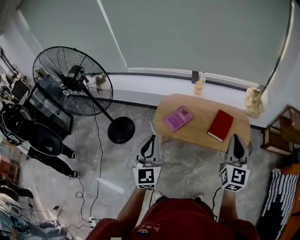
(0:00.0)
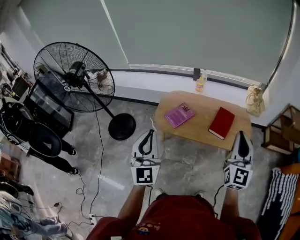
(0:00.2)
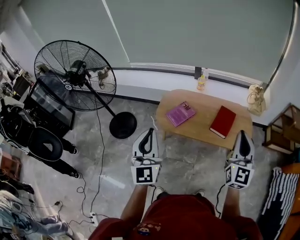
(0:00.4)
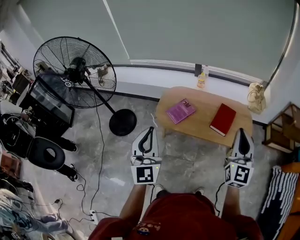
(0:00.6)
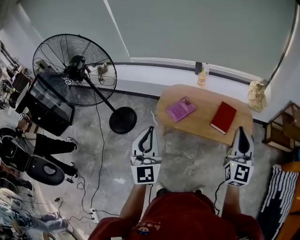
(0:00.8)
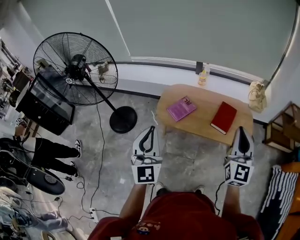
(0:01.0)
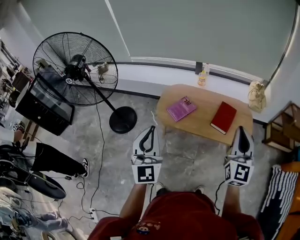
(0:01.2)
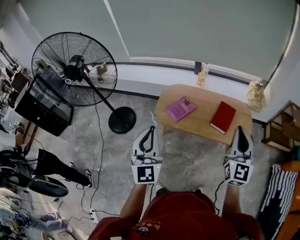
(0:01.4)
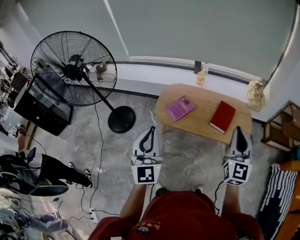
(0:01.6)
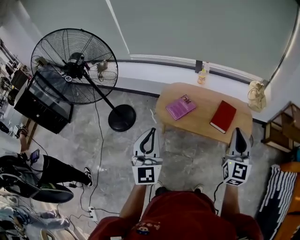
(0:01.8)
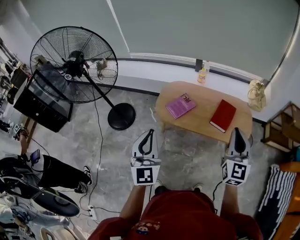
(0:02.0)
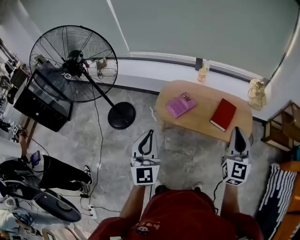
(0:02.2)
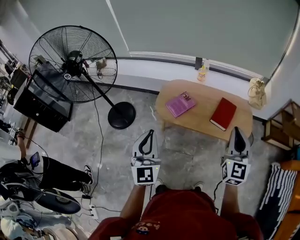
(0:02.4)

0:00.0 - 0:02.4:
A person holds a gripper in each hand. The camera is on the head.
0:00.0 - 0:02.4: The grippers move only a little.

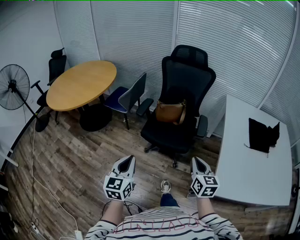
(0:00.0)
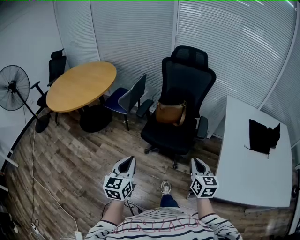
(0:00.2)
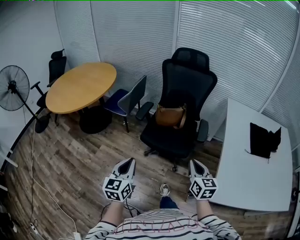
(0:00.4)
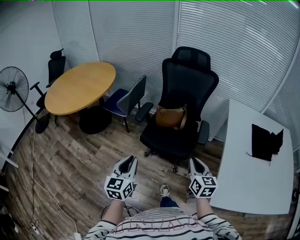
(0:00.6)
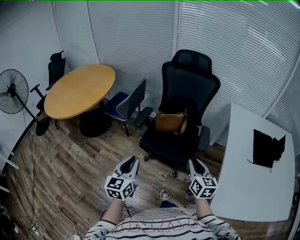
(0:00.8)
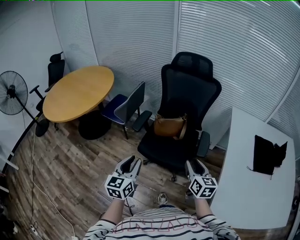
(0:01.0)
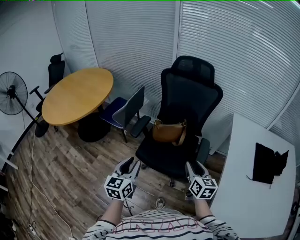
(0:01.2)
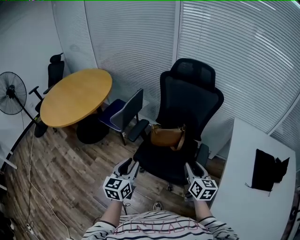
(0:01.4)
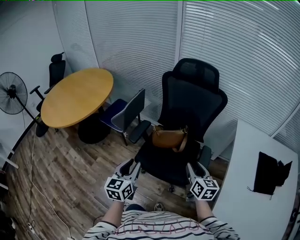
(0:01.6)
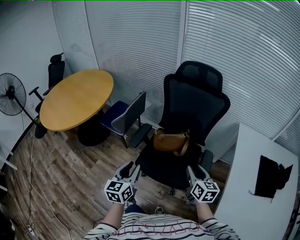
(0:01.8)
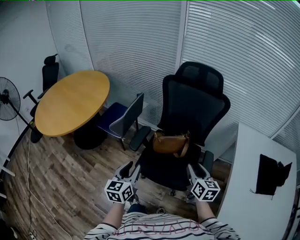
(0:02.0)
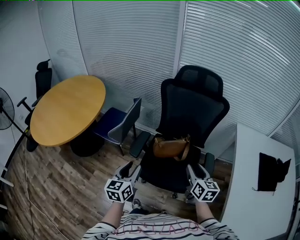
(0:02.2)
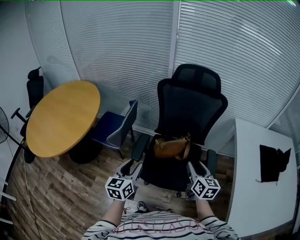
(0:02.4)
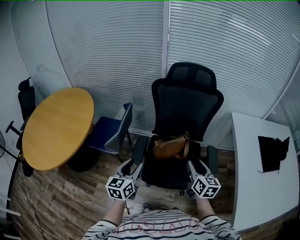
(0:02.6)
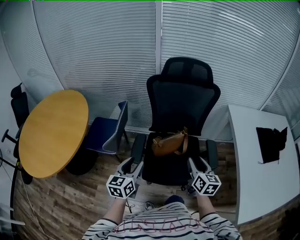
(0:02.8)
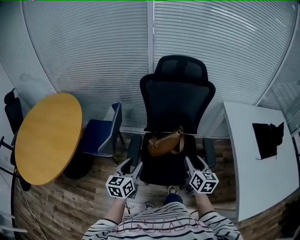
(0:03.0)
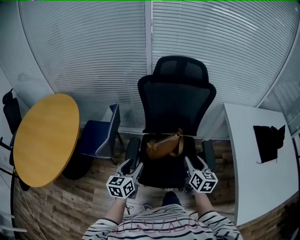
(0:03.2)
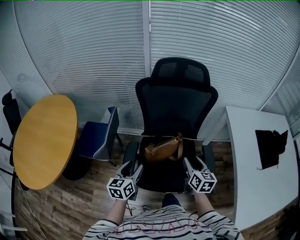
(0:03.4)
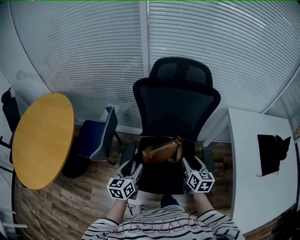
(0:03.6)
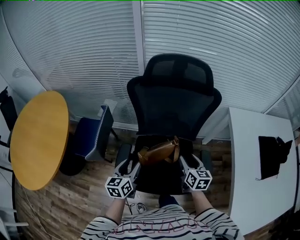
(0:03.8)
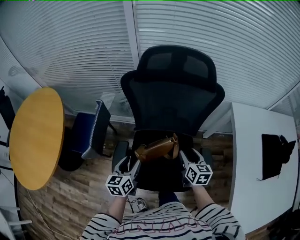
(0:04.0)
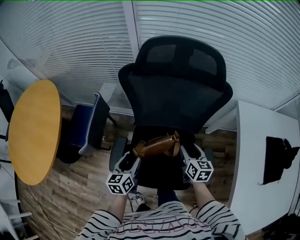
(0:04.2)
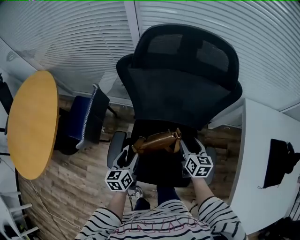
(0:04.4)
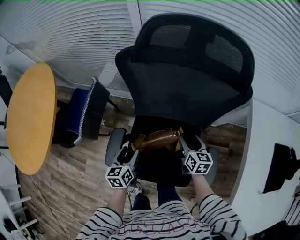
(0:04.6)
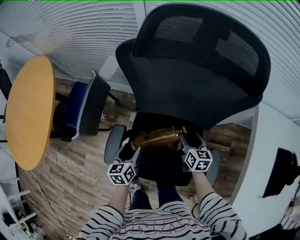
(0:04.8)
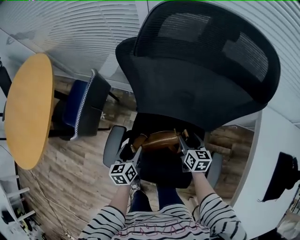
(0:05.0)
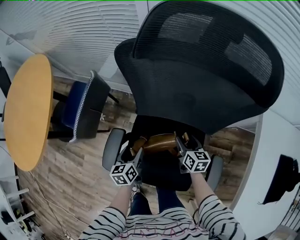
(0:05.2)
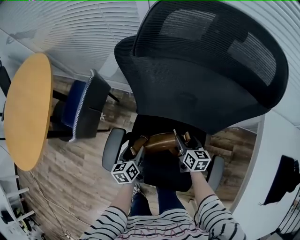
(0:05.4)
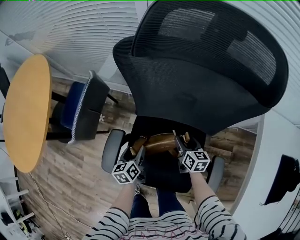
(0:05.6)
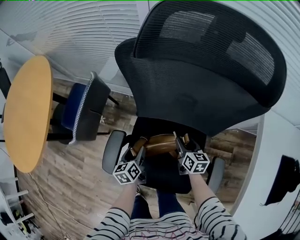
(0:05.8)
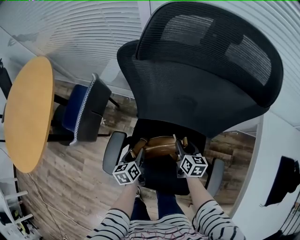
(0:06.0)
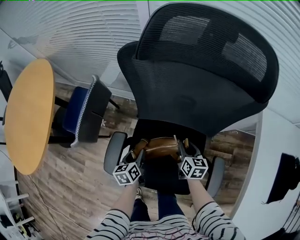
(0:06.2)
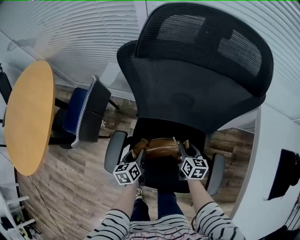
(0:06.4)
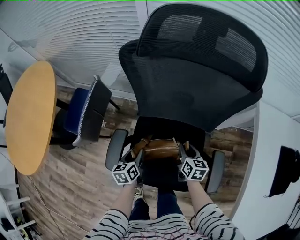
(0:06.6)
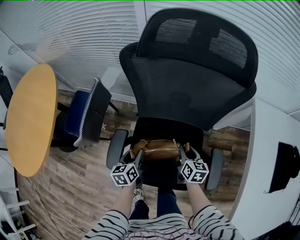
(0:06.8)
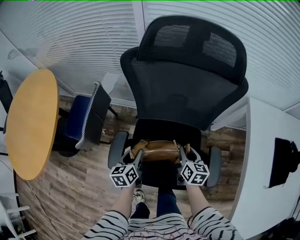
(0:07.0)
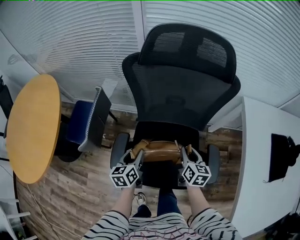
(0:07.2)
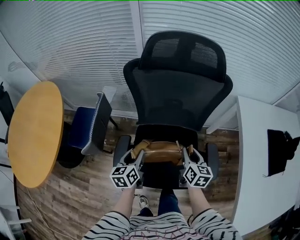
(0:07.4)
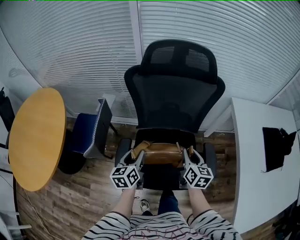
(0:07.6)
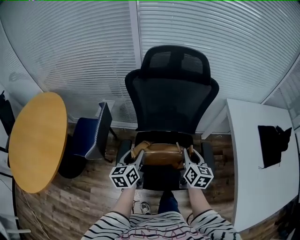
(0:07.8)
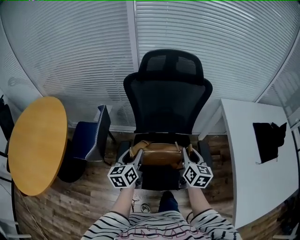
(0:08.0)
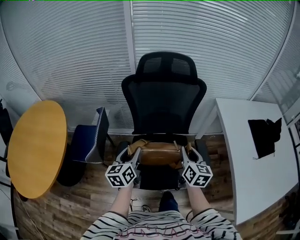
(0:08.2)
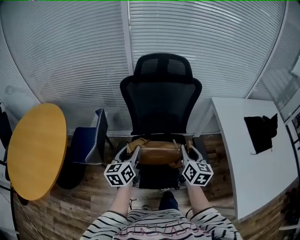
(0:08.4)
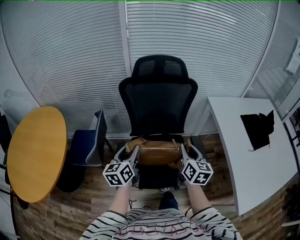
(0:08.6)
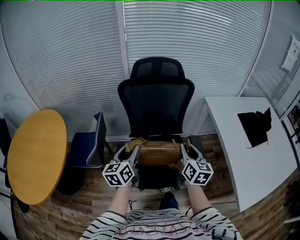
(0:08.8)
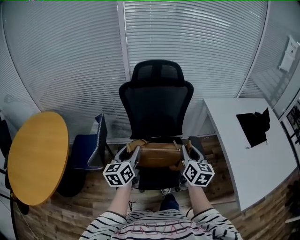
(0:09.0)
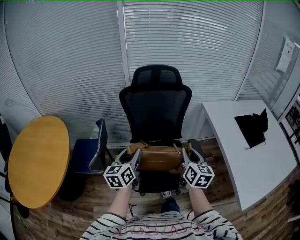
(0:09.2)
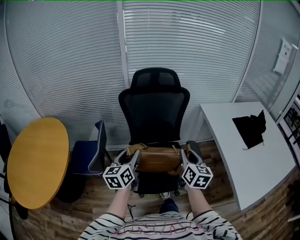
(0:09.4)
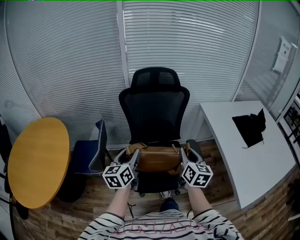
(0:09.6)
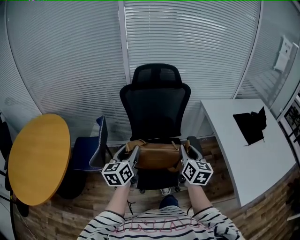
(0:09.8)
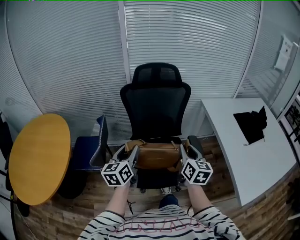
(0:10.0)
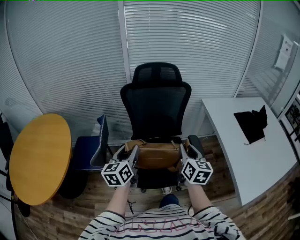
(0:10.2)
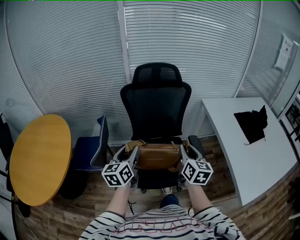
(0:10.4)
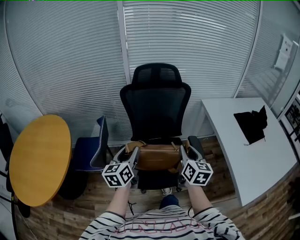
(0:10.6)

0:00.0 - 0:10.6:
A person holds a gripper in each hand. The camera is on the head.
0:00.0 - 0:01.6: The two grippers go roughly 30 cm forward. The right gripper opens.
0:01.6 - 0:03.0: The right gripper shifts by approximately 15 cm, and turns by roughly 20 degrees. The left gripper moves approximately 25 cm, and rotates some 30 degrees.
0:03.0 - 0:04.6: Both grippers travel together forward and downward, roughly 35 cm. The left gripper turns by about 30 degrees.
0:04.6 - 0:06.0: Both grippers travel together downward, roughly 10 cm.
0:06.0 - 0:07.6: The left gripper moves upward, about 20 cm, and rotates about 30 degrees; the right gripper shifts some 25 cm upward and backward, and rotates roughly 20 degrees.
0:07.6 - 0:09.0: The grippers both shift upward and backward by about 20 cm.
0:09.0 - 0:10.6: The grippers make only small movements.

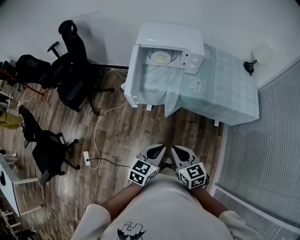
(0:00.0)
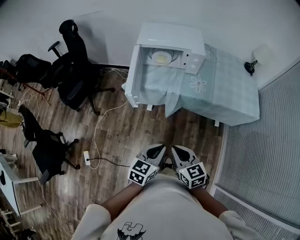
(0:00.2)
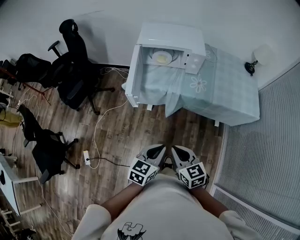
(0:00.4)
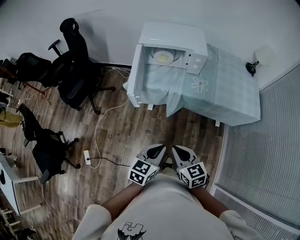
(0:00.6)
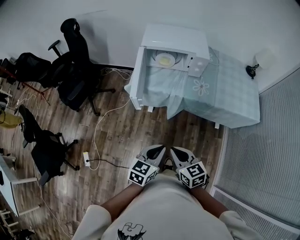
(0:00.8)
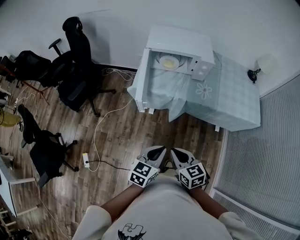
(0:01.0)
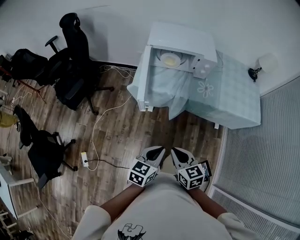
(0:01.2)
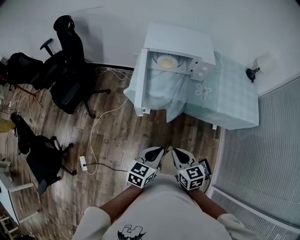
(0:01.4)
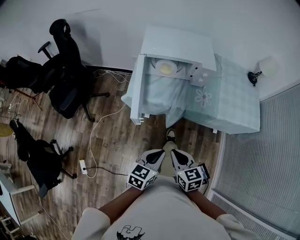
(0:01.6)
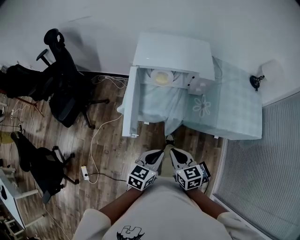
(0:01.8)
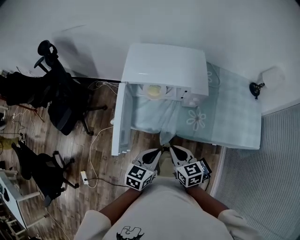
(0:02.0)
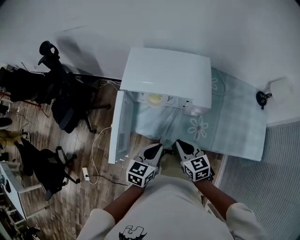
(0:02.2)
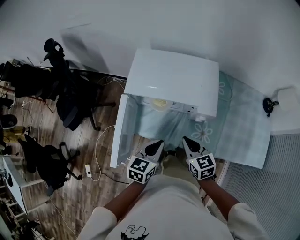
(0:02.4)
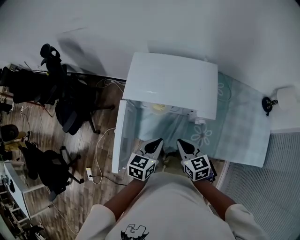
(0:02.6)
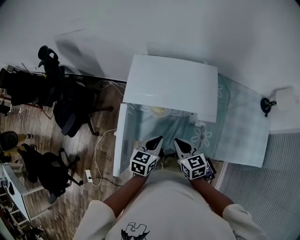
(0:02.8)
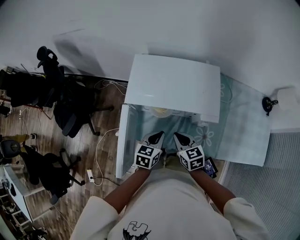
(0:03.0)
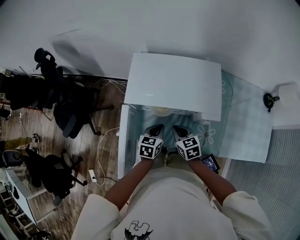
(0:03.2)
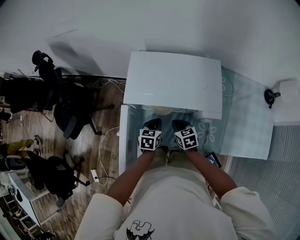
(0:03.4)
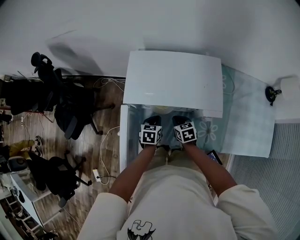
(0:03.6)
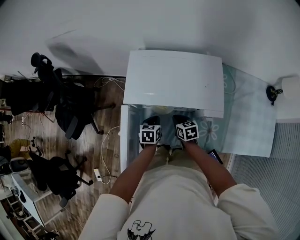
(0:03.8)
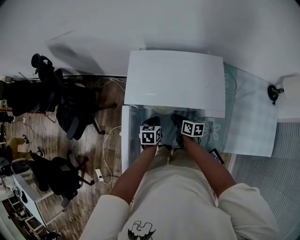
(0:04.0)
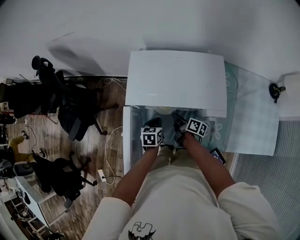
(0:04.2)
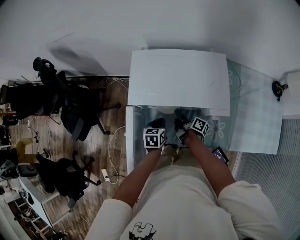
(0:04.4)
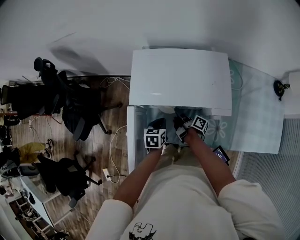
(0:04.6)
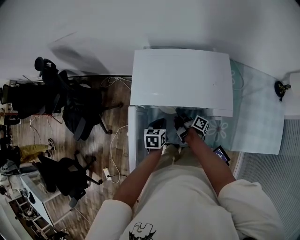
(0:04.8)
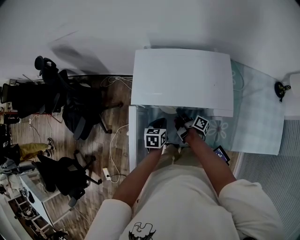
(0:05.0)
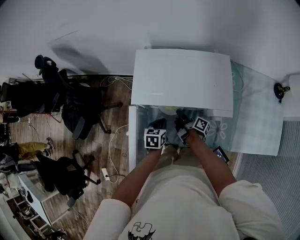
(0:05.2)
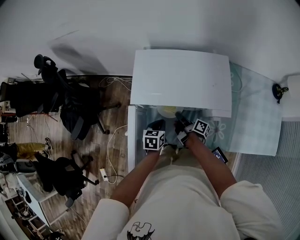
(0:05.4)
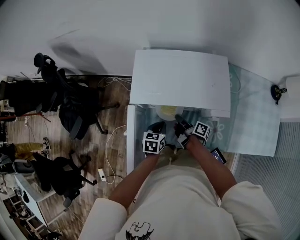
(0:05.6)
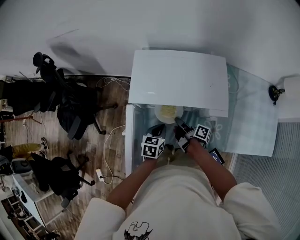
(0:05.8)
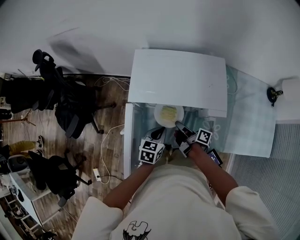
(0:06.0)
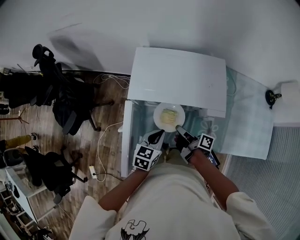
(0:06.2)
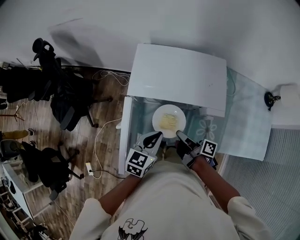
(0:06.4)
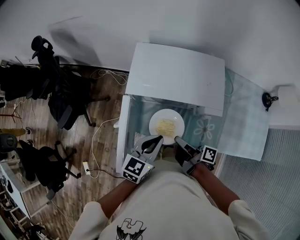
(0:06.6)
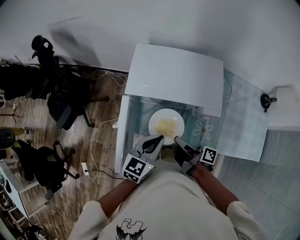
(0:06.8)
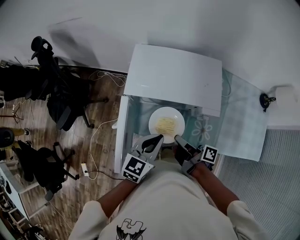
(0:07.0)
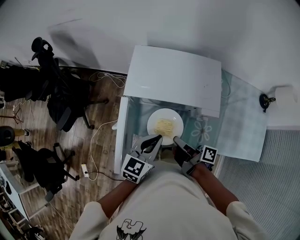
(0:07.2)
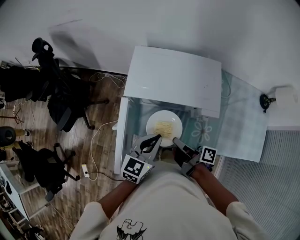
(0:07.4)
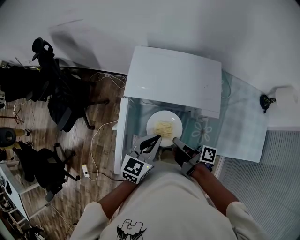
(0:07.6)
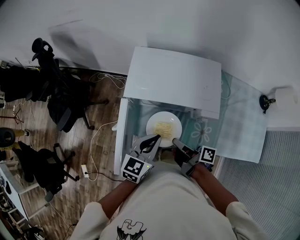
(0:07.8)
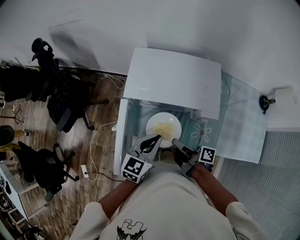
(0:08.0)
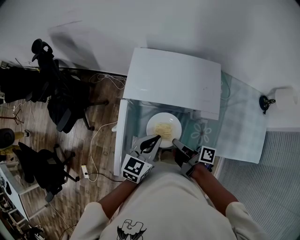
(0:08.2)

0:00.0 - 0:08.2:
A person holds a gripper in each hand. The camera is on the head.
0:00.0 - 0:01.6: The grippers both shift forward and to the left by roughly 10 cm.
0:01.6 - 0:03.2: Both grippers move forward, roughly 40 cm.
0:03.2 - 0:05.0: The left gripper heads downward, covering approximately 5 cm. The right gripper goes some 15 cm downward and forward, and twists roughly 80 degrees clockwise, seen from behind.
0:05.0 - 0:06.6: The grippers both shift upward and backward by roughly 20 cm. The left gripper turns by roughly 30 degrees.
0:06.6 - 0:08.2: There are only small adjustments of the grippers.

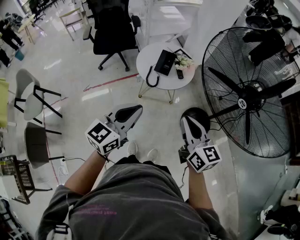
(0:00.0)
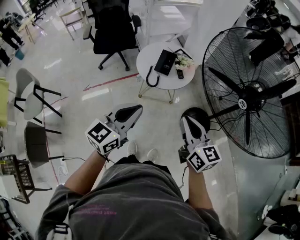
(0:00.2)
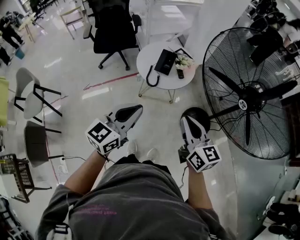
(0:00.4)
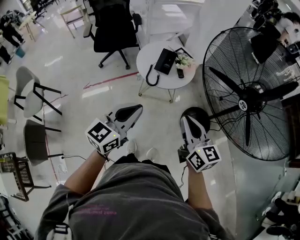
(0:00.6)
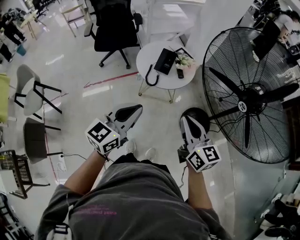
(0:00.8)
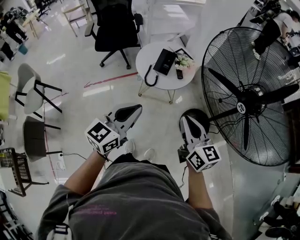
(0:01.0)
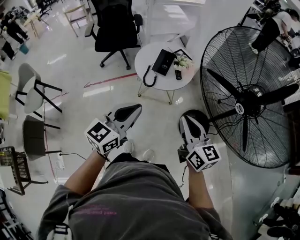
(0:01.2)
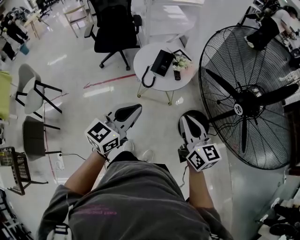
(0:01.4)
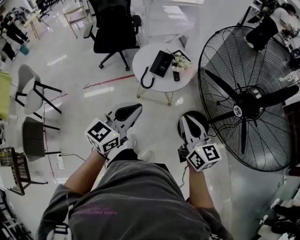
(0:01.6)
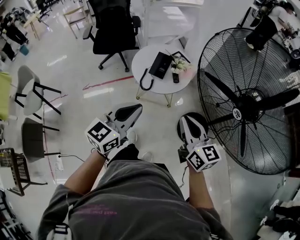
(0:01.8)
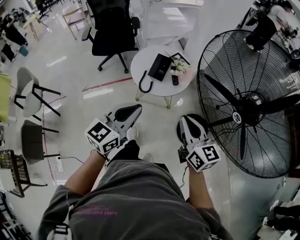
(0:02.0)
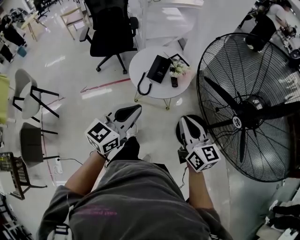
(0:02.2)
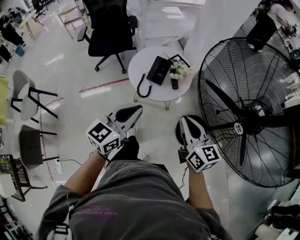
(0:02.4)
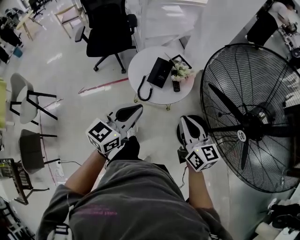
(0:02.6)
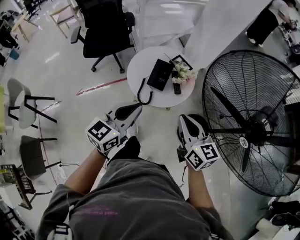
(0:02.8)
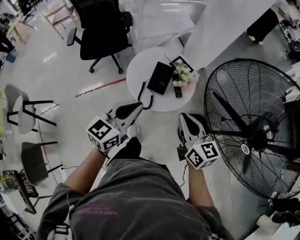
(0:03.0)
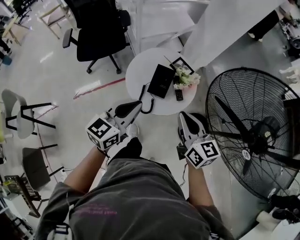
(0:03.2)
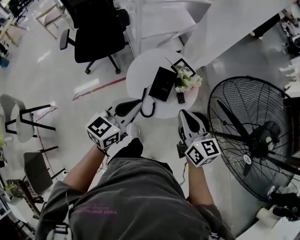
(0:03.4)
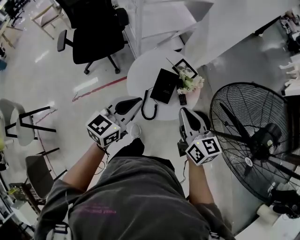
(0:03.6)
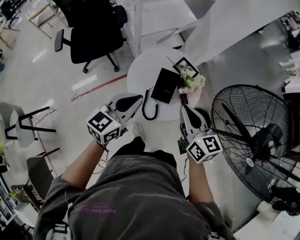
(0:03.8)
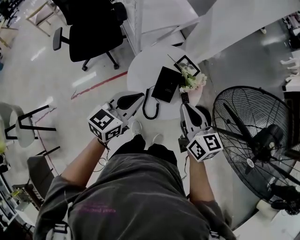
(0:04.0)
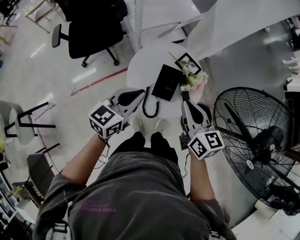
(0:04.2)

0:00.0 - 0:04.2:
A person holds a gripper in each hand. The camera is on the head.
0:00.0 - 0:01.4: The left gripper changes place by approximately 5 cm. Meanwhile the right gripper ends up about 5 cm from where it was.
0:01.4 - 0:02.8: Both grippers move forward, roughly 20 cm.
0:02.8 - 0:04.2: The grippers both shift forward and to the left by some 20 cm.
